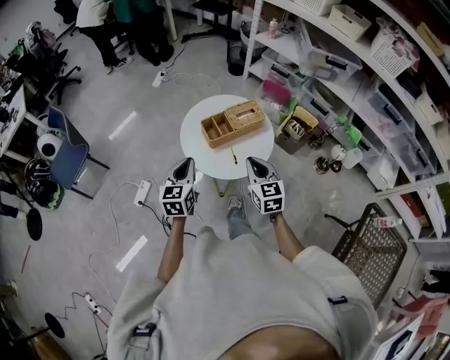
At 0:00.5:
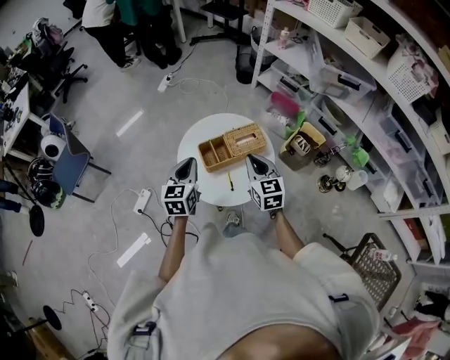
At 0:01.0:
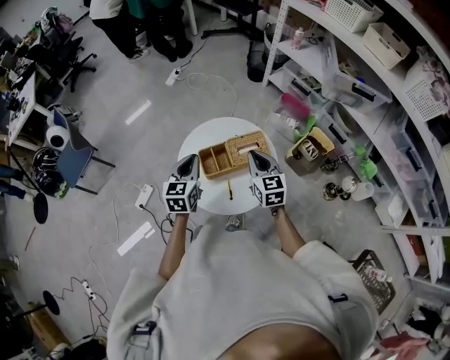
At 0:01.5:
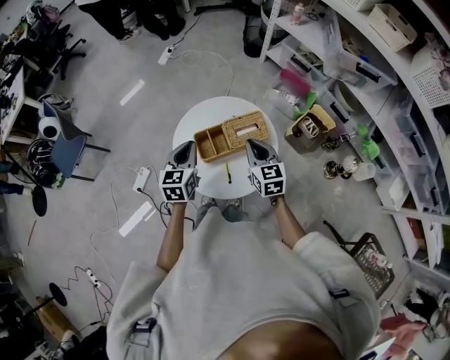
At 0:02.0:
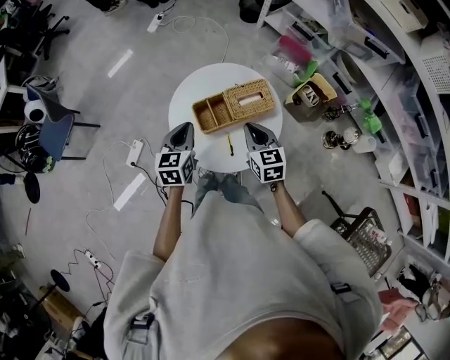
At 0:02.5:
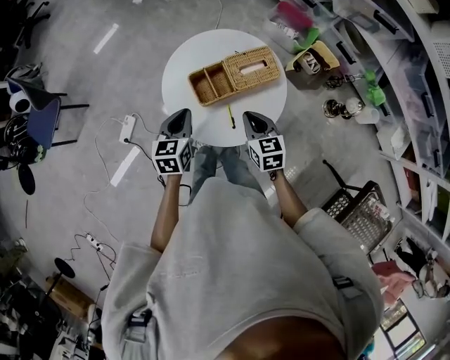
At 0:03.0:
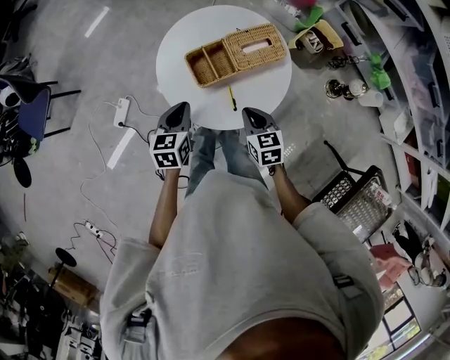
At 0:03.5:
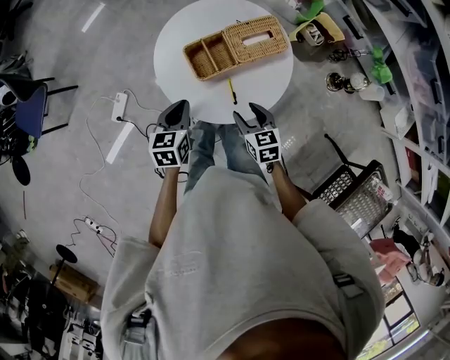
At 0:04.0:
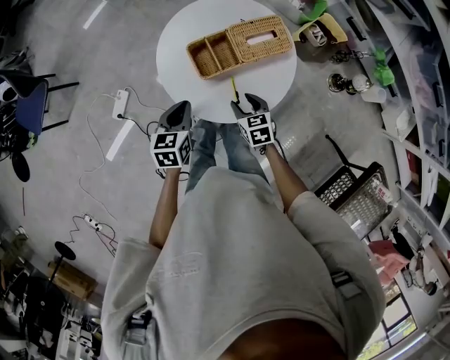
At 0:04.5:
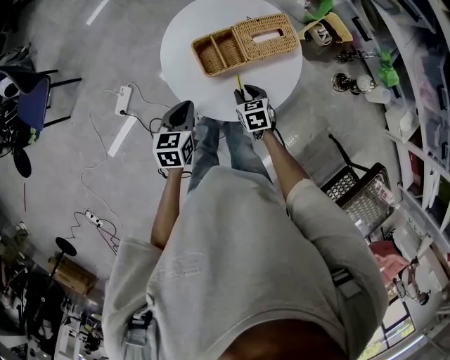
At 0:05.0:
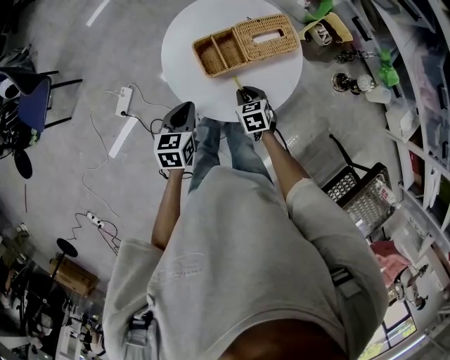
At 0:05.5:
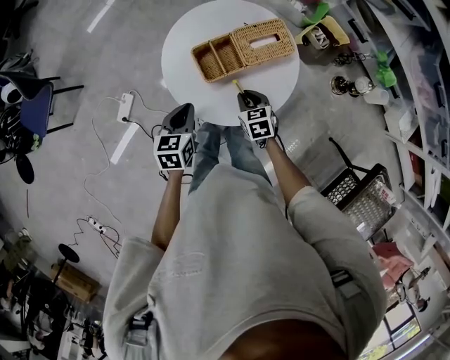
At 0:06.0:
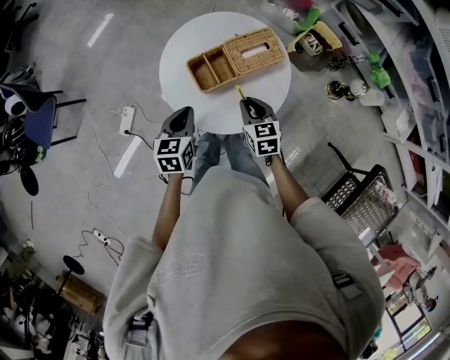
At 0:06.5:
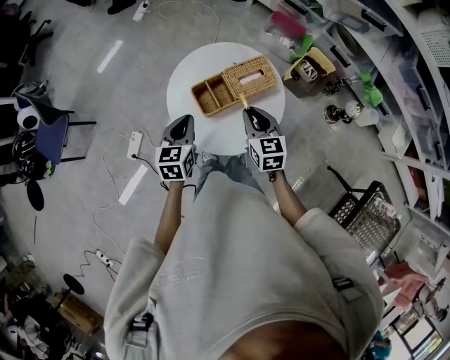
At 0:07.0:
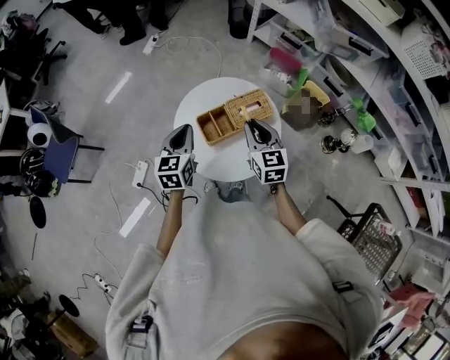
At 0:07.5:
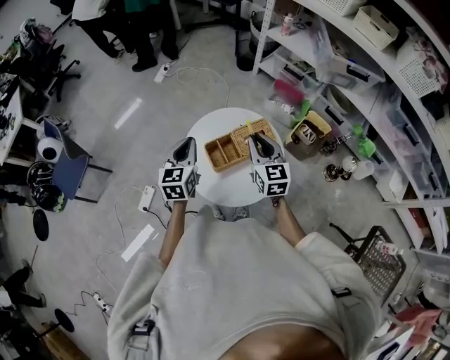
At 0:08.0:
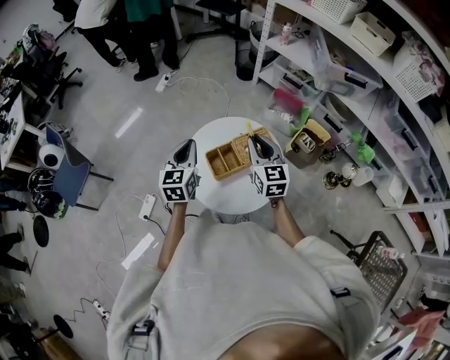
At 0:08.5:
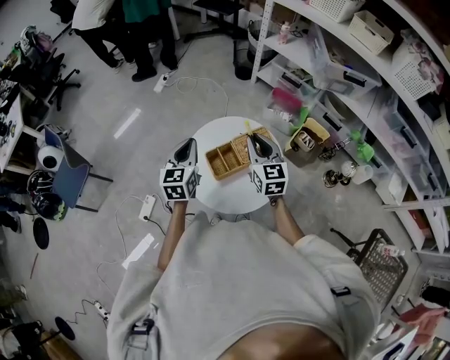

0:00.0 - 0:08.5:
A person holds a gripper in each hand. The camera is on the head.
0:00.0 - 0:02.0: Both grippers travel together forward and downward, about 15 cm.
0:02.0 - 0:04.0: Both grippers move downward and backward, some 15 cm. The right gripper swivels about 20 degrees, and opens up.
0:04.0 - 0:06.5: The left gripper is displaced upward and forward by roughly 10 cm, while the right gripper moves upward and forward, about 20 cm, swivels about 30 degrees, and closes its fingers.
0:06.5 - 0:08.5: Both grippers travel together upward and forward, some 15 cm.

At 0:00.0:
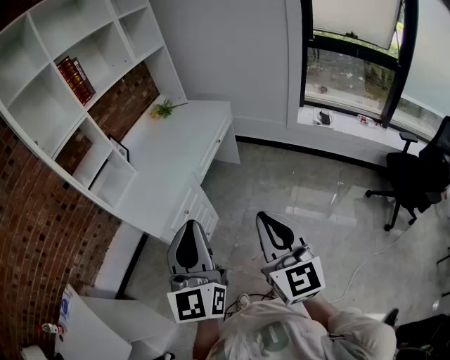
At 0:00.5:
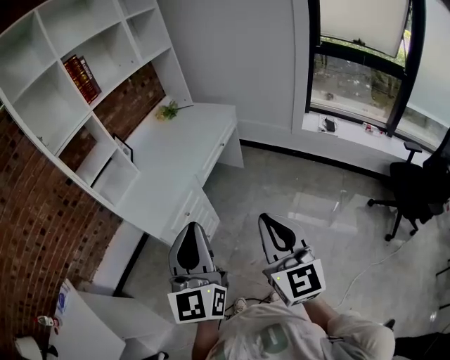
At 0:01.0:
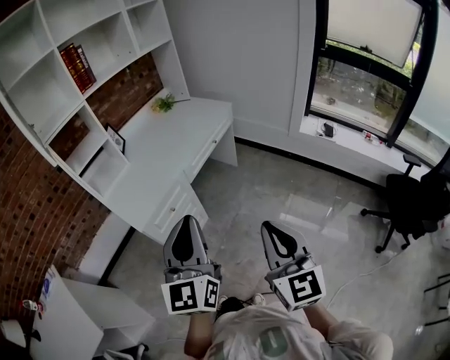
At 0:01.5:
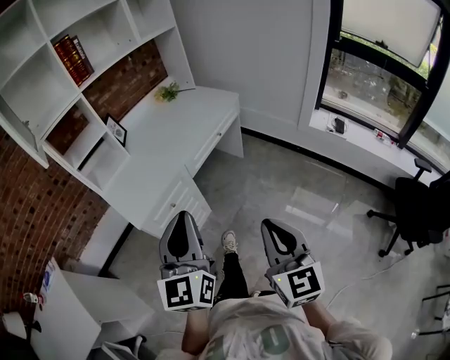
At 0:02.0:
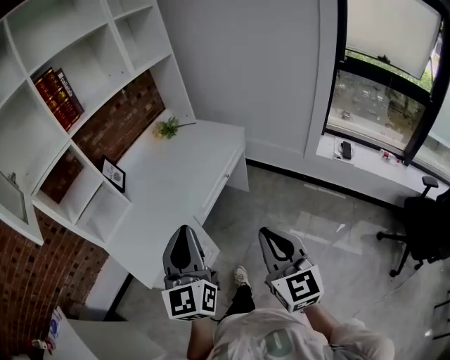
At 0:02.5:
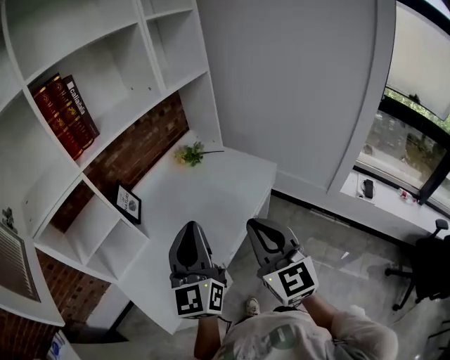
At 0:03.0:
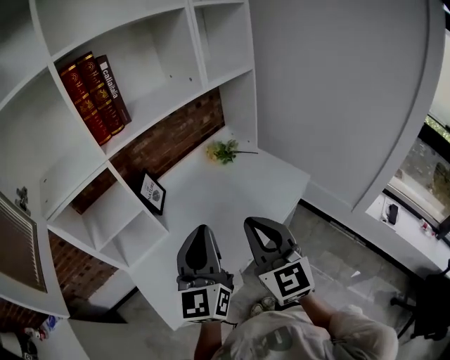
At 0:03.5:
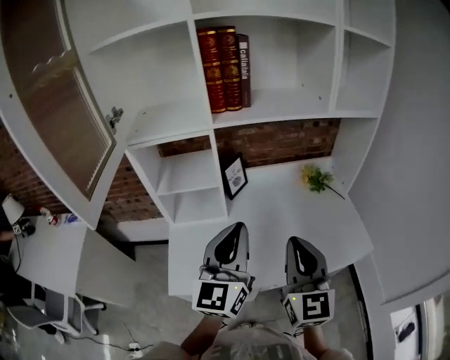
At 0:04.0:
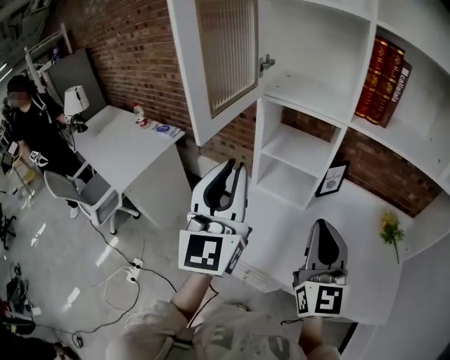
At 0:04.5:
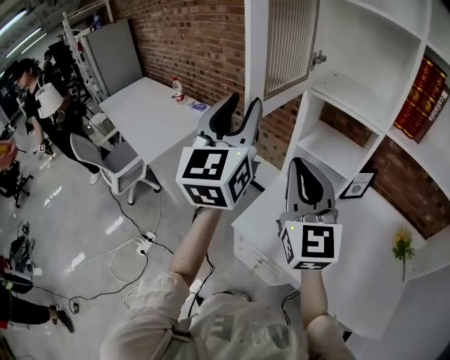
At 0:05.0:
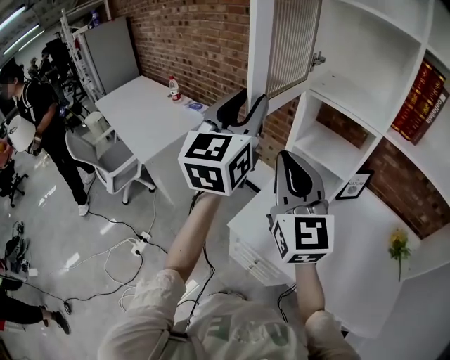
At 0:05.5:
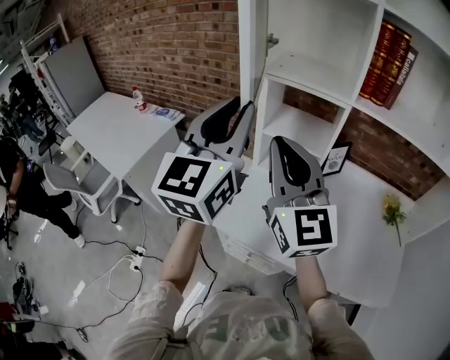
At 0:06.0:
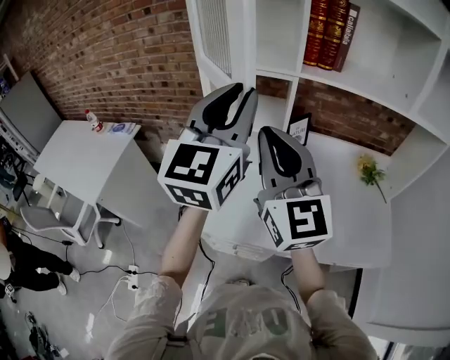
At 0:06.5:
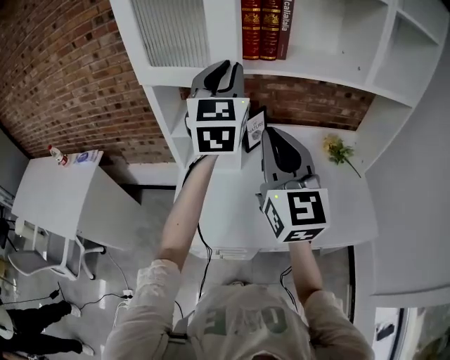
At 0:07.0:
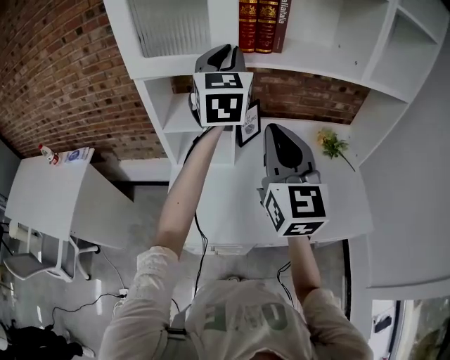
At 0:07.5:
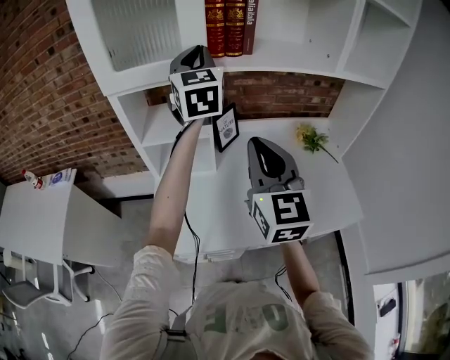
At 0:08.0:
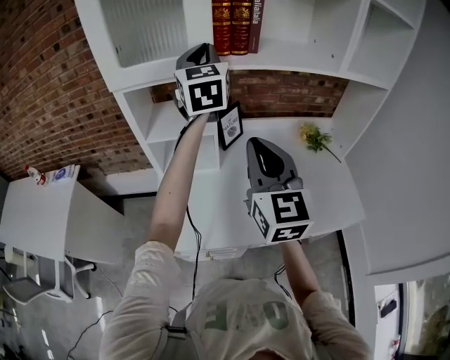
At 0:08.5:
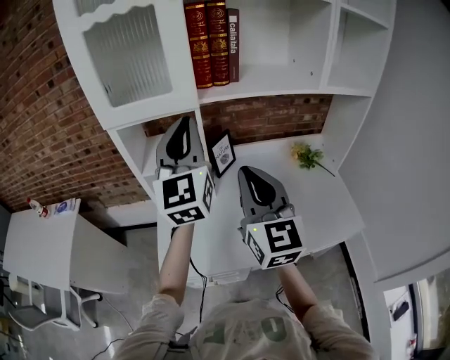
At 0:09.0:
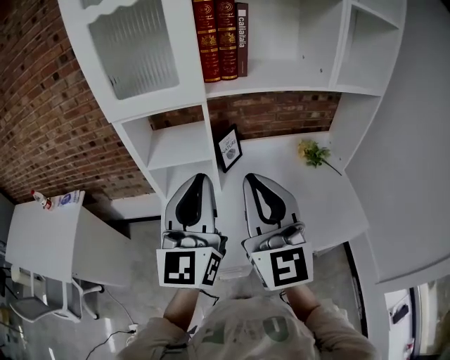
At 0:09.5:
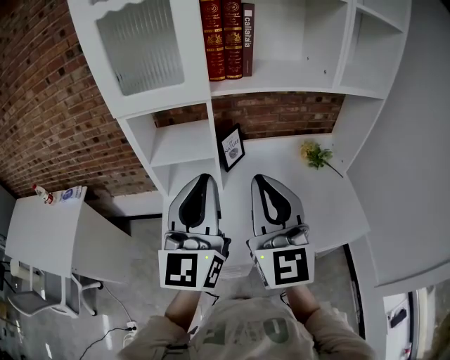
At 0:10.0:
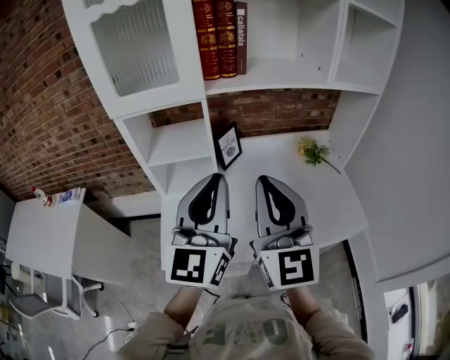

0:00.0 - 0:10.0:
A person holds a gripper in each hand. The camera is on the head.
0:00.0 - 0:02.0: Both grippers travel together forward, roughly 25 cm.
0:02.0 - 0:04.0: The right gripper changes place by about 40 cm, and rotates about 70 degrees. The left gripper ends up approximately 30 cm from where it was, and changes its angle by about 70 degrees.
0:04.0 - 0:06.0: The left gripper is displaced to the right by about 10 cm, and changes its angle by some 20 degrees. The right gripper travels upward and forward by some 10 cm, and travels to the left and back again, about 20 cm each way.
0:06.0 - 0:08.0: The left gripper travels forward and to the right by approximately 25 cm. The right gripper travels to the right and downward by approximately 15 cm, and turns by about 20 degrees.
0:08.0 - 0:10.0: The right gripper travels backward by roughly 10 cm, while the left gripper travels backward by roughly 25 cm.

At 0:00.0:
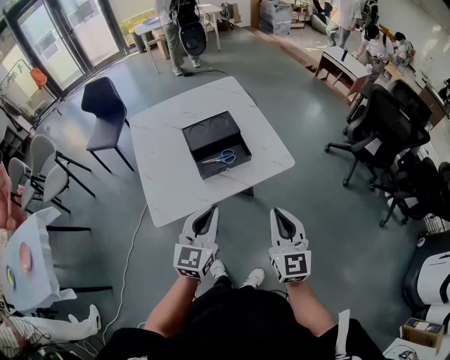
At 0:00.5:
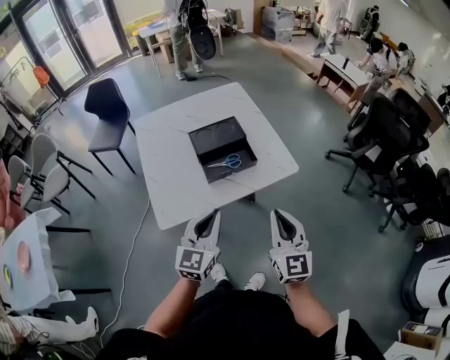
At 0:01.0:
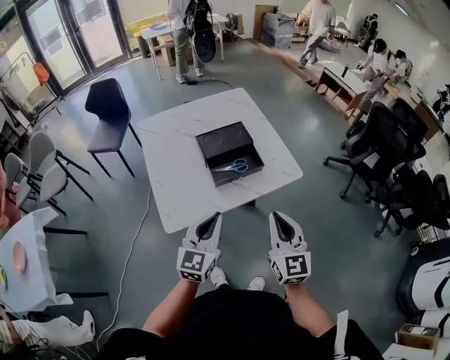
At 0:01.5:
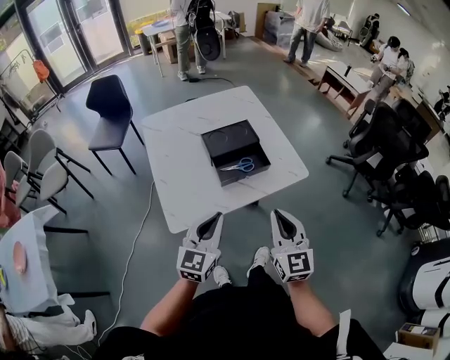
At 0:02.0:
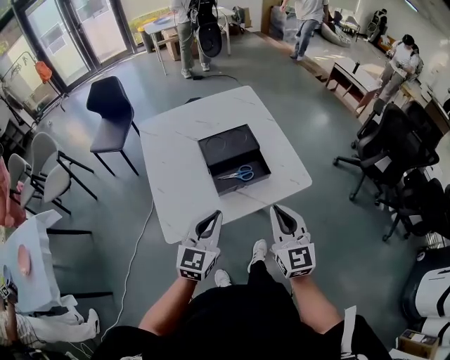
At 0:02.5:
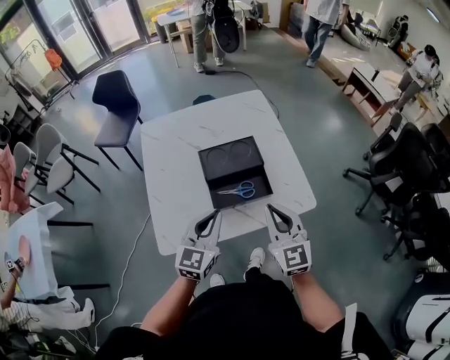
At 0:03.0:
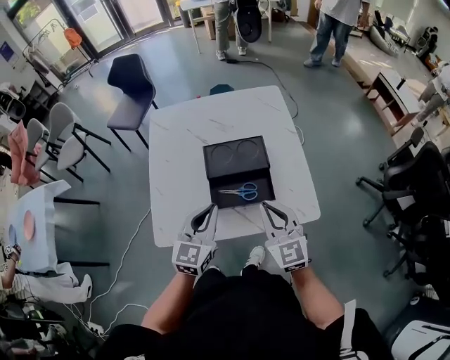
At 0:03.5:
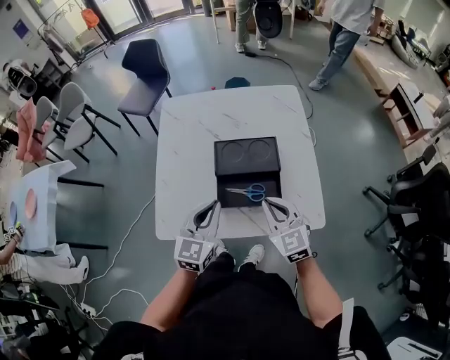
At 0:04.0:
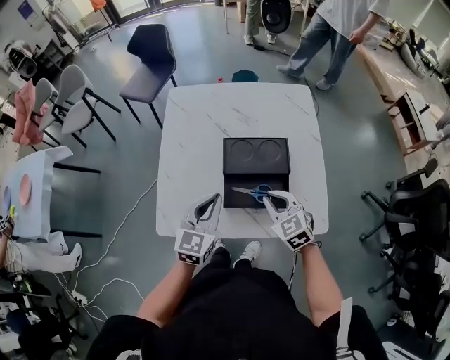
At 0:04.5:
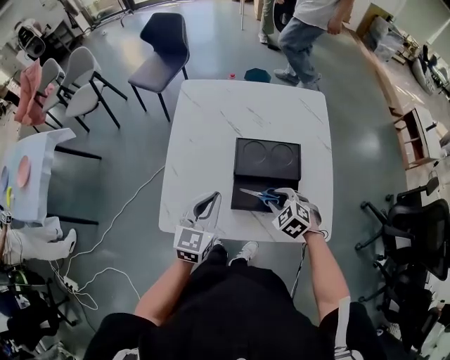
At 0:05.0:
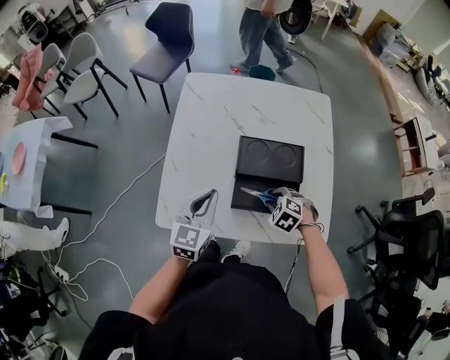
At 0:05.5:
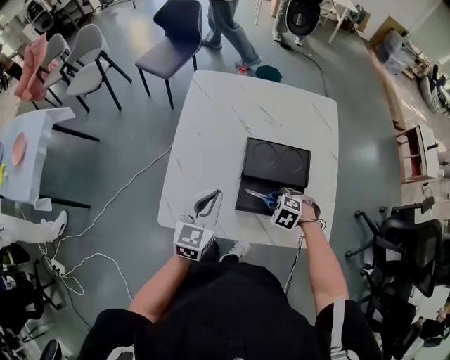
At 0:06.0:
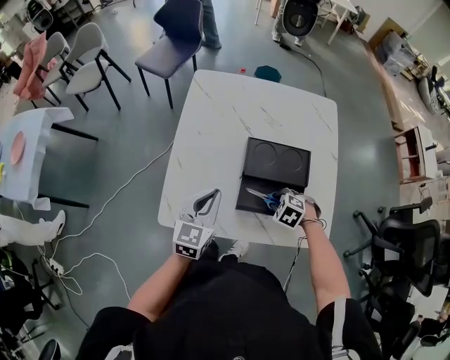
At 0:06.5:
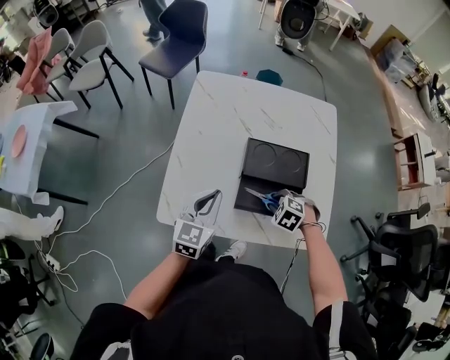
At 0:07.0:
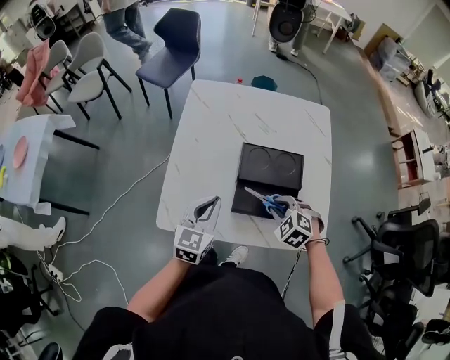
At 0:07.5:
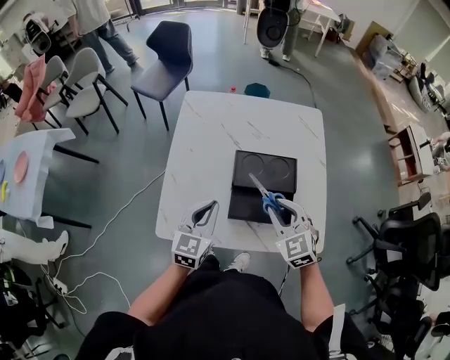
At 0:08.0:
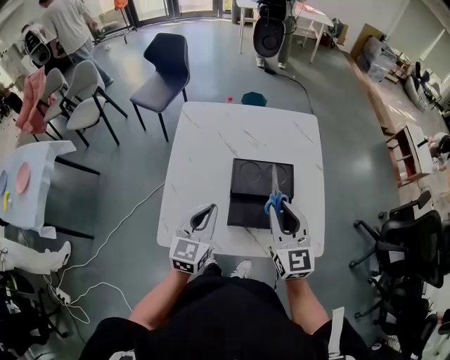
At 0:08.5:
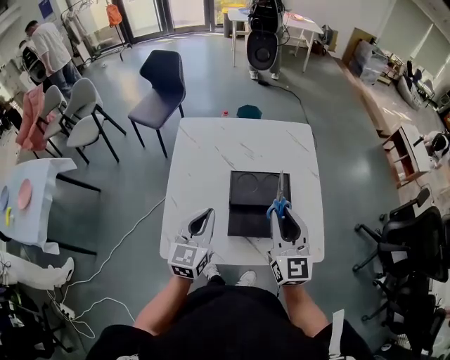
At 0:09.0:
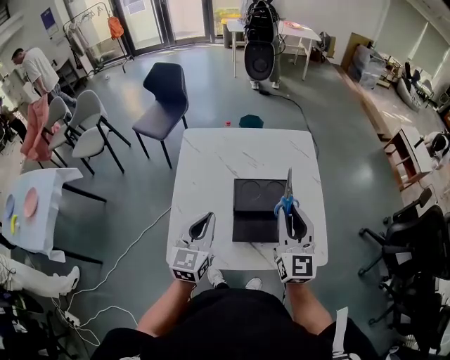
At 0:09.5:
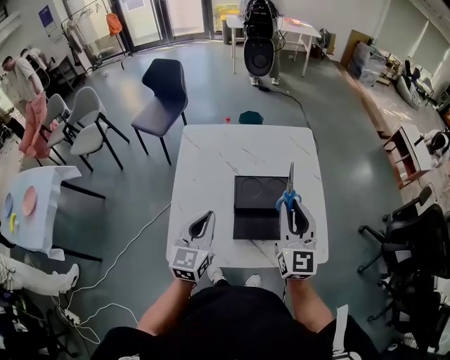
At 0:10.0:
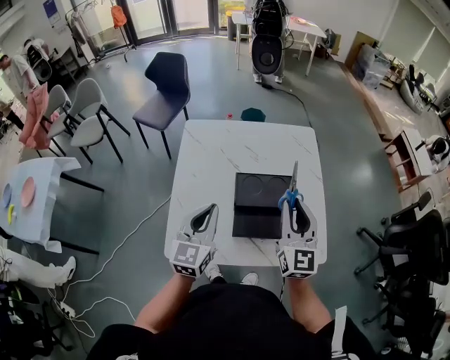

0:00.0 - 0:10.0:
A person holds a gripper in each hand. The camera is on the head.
0:00.0 - 0:02.0: The left gripper travels to the left and forward by some 10 cm; the right gripper moves forward and to the left, approximately 10 cm.
0:02.0 - 0:04.0: The right gripper moves roughly 25 cm, and angles its fingers downward, by some 30 degrees; the left gripper changes place by about 15 cm, and changes its angle by some 20 degrees.
0:04.0 - 0:06.0: The right gripper moves downward, about 15 cm, and angles its fingers downward, by approximately 40 degrees. Meanwhile the left gripper shifts by roughly 5 cm.
0:06.0 - 0:08.0: The right gripper heads upward, covering approximately 25 cm, and angles its fingers upward, by some 70 degrees. Meanwhile the left gripper shifts roughly 5 cm upward.
0:08.0 - 0:10.0: The right gripper moves approximately 5 cm, while the left gripper moves upward, roughly 5 cm.
